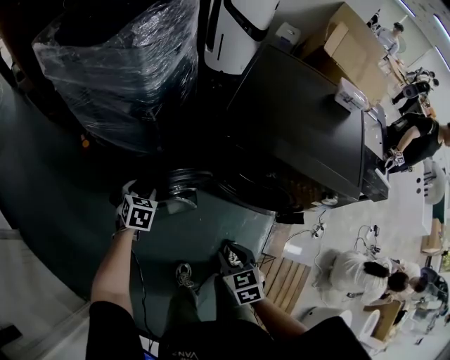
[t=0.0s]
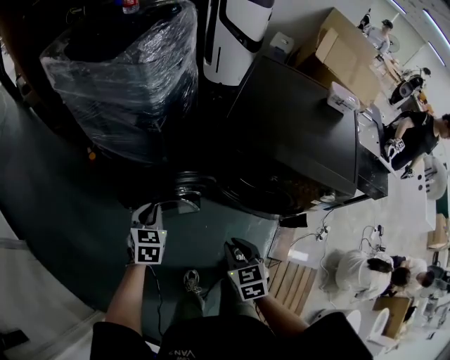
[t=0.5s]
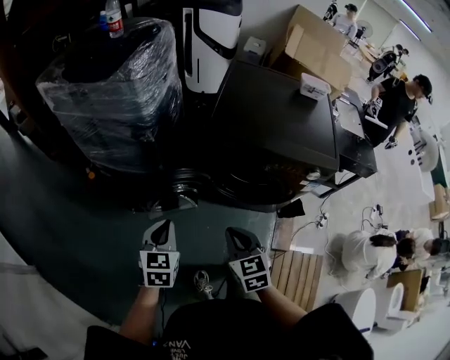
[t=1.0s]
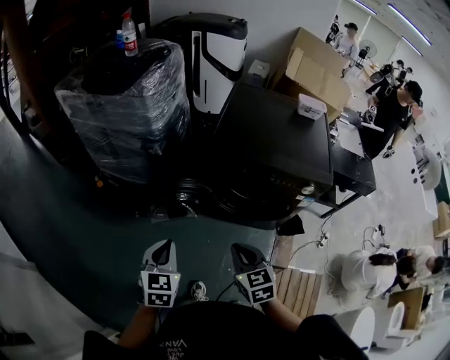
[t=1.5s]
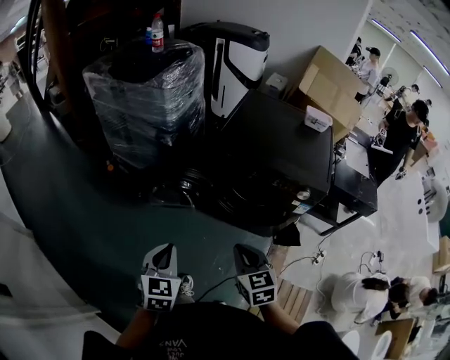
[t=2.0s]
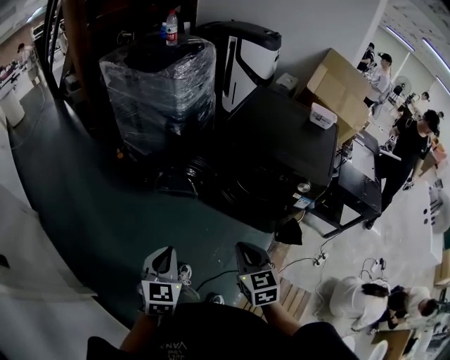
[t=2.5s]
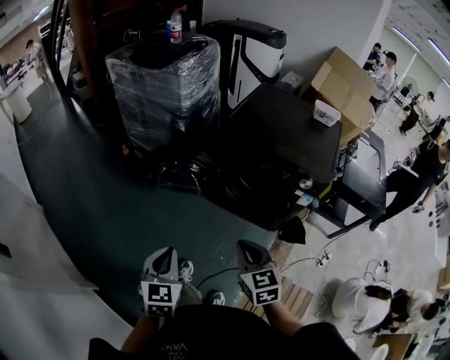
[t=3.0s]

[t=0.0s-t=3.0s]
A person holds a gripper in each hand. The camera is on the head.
t=0.0s to t=1.5s: The right gripper moves upward and backward, some 15 cm, and closes; the left gripper is displaced backward and upward by approximately 30 cm, swivels some 20 degrees, and closes up.
t=1.5s to t=3.0s: The right gripper is displaced backward and to the right by approximately 15 cm. The left gripper is displaced backward by approximately 20 cm.

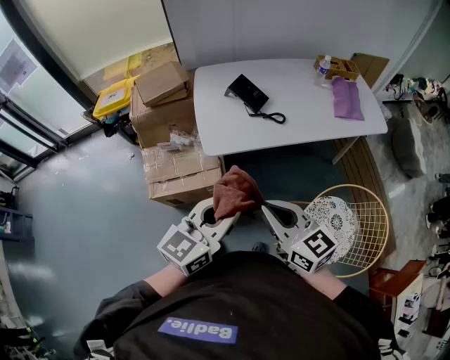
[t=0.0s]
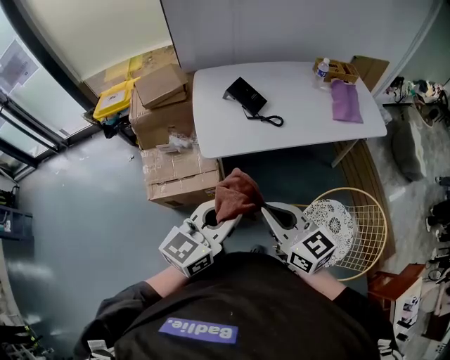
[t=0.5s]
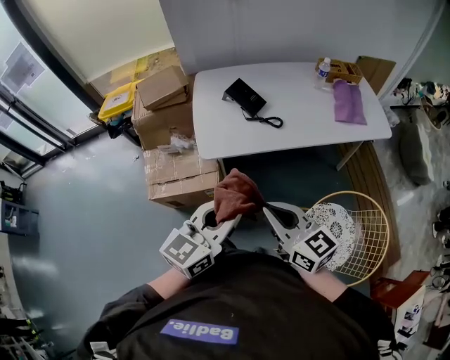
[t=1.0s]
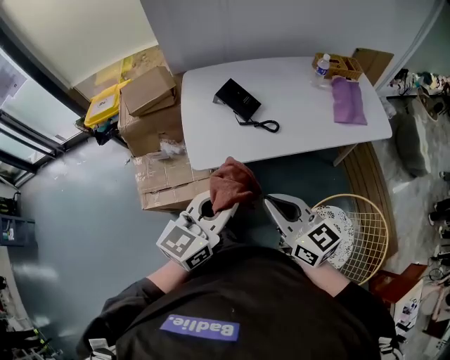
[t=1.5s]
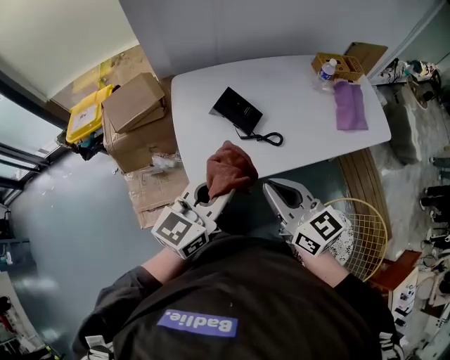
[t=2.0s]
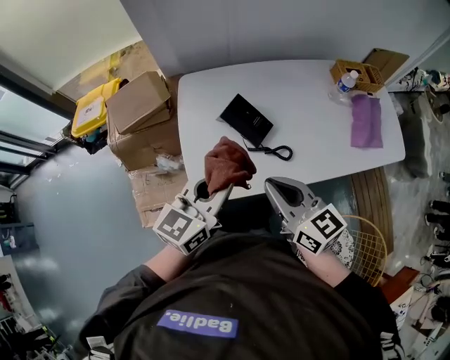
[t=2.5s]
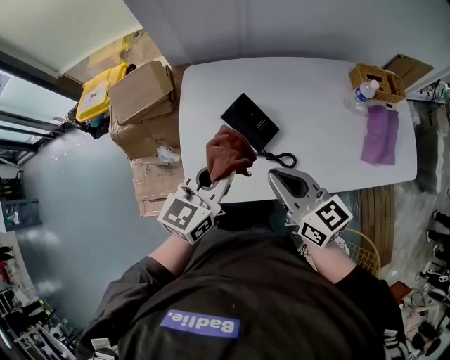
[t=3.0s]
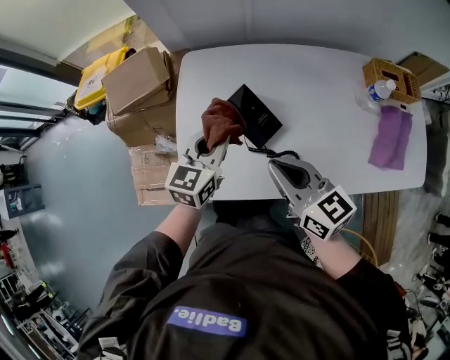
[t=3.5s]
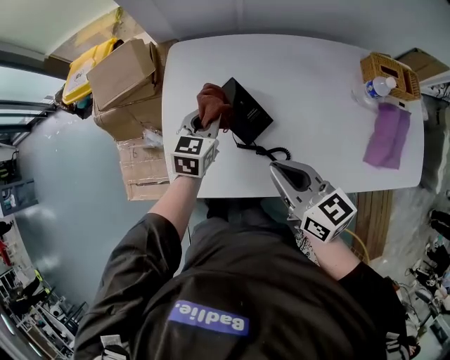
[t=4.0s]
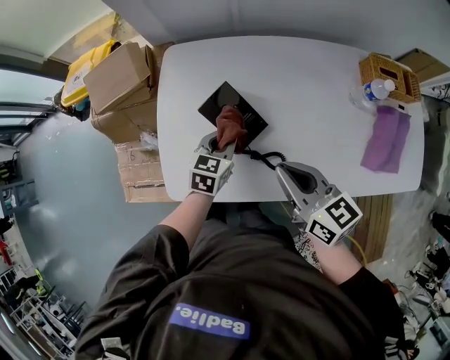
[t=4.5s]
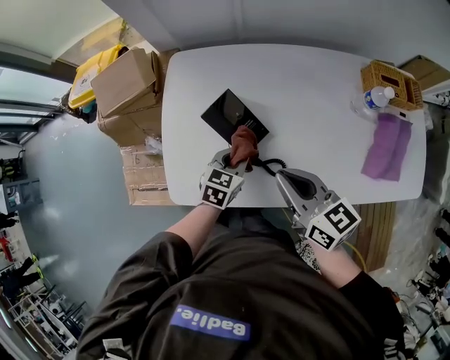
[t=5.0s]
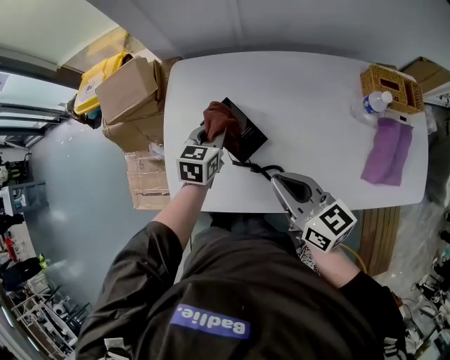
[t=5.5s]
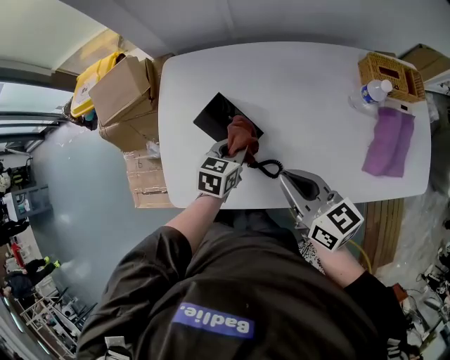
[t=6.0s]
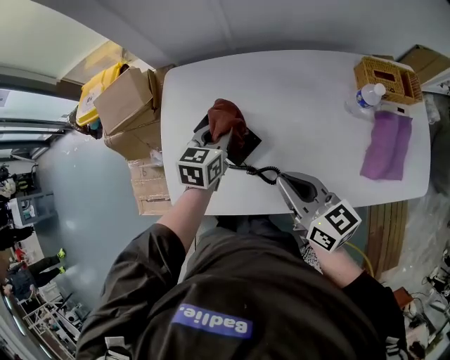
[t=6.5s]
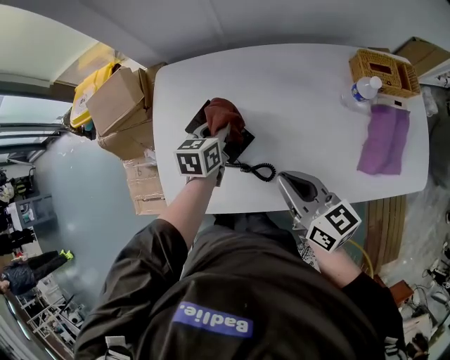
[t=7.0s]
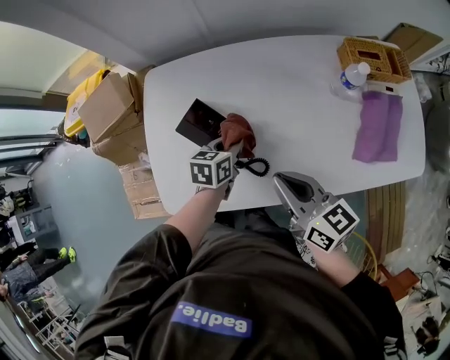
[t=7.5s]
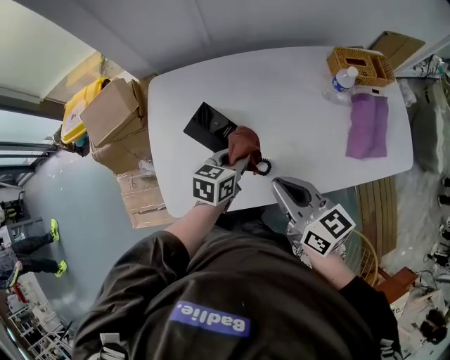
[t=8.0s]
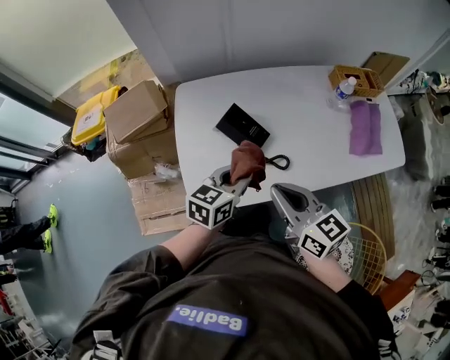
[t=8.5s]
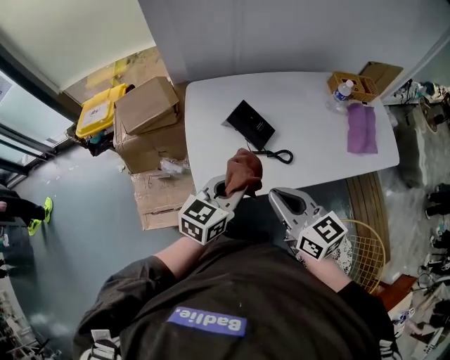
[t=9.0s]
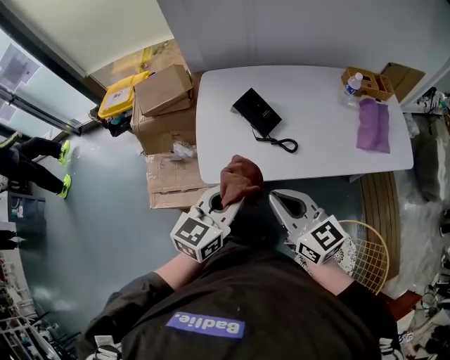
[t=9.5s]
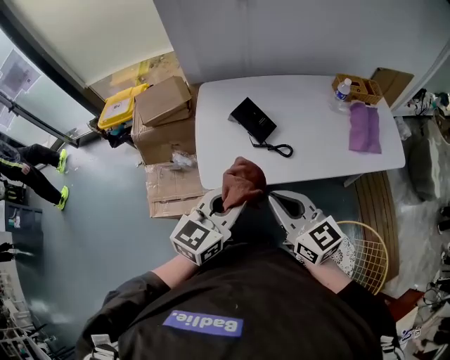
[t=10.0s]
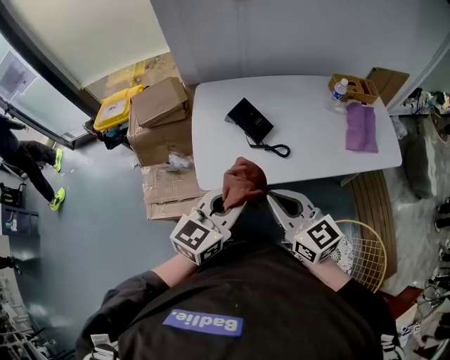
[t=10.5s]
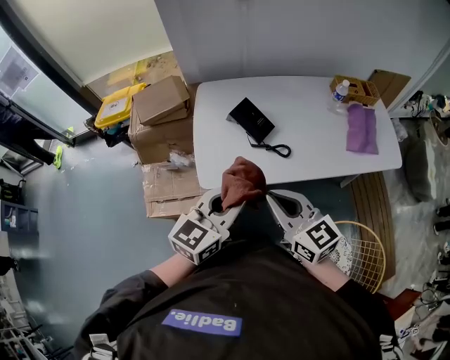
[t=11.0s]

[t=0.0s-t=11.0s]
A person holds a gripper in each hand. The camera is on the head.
t=0.0s to t=2.0s: Both grippers travel together forward, about 25 cm.
t=2.0s to t=3.5s: The grippers both shift forward and downward by roughly 25 cm. The left gripper rotates some 30 degrees.
t=3.5s to t=5.5s: The left gripper shifts approximately 10 cm downward and forward; the right gripper shifts approximately 5 cm to the right.
t=5.5s to t=7.5s: The left gripper shifts about 15 cm to the right and backward. Meanwhile the right gripper goes roughly 5 cm to the right.
t=7.5s to t=9.0s: The right gripper moves backward, to the left and upward, roughly 25 cm. Meanwhile the left gripper heads backward, upward and to the left, covering about 35 cm, and changes its angle by roughly 30 degrees.
t=9.0s to t=11.0s: The right gripper is displaced backward by roughly 10 cm. The left gripper heads backward and upward, covering roughly 15 cm.

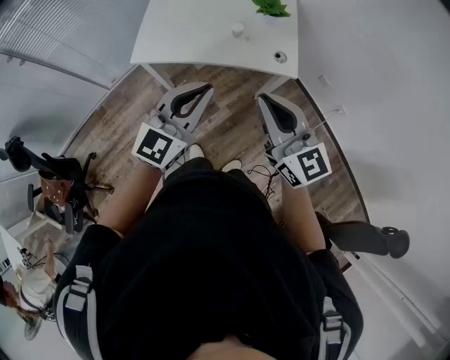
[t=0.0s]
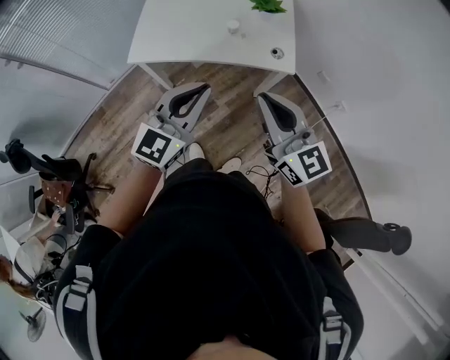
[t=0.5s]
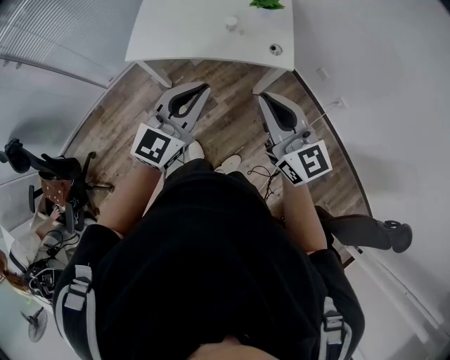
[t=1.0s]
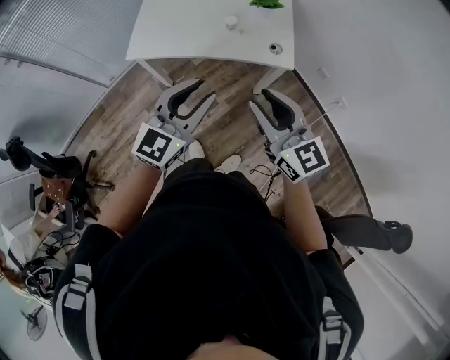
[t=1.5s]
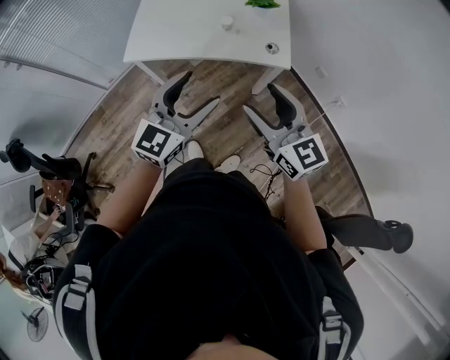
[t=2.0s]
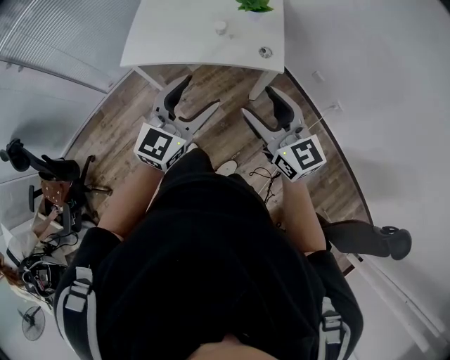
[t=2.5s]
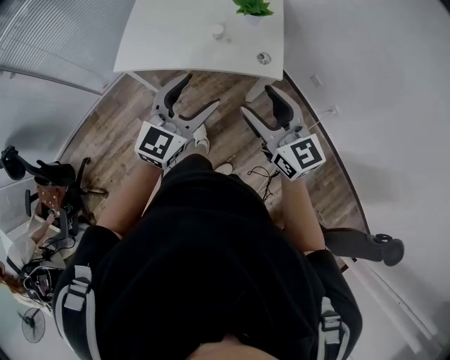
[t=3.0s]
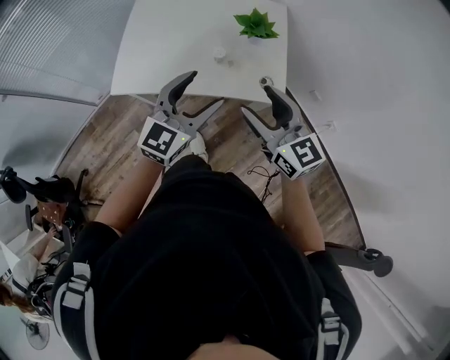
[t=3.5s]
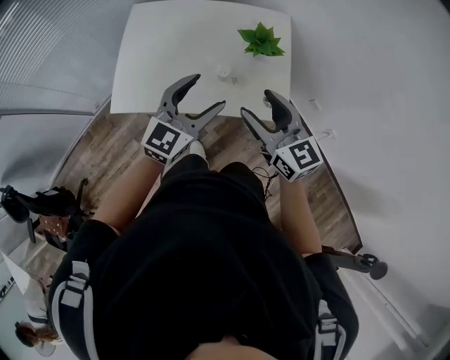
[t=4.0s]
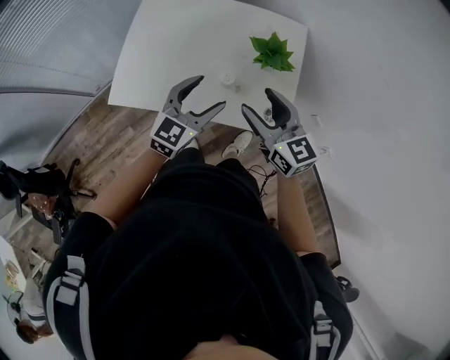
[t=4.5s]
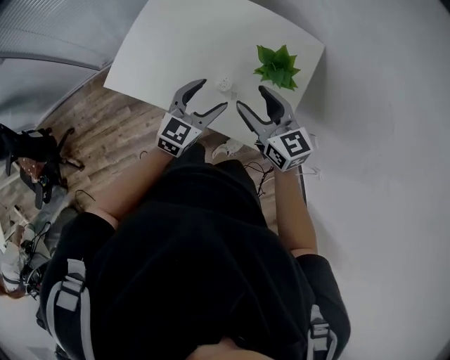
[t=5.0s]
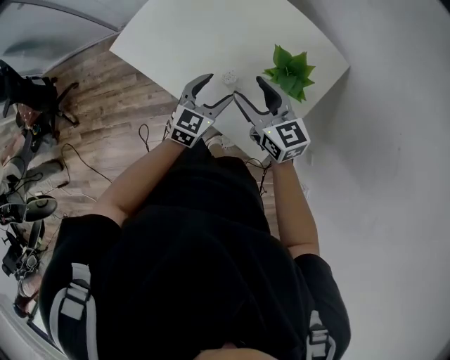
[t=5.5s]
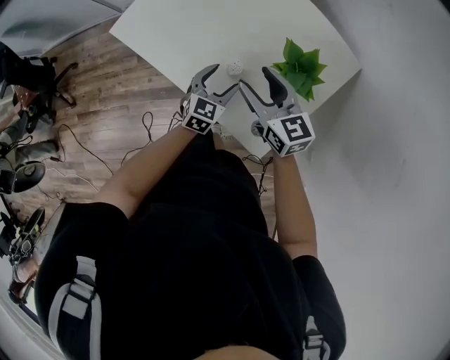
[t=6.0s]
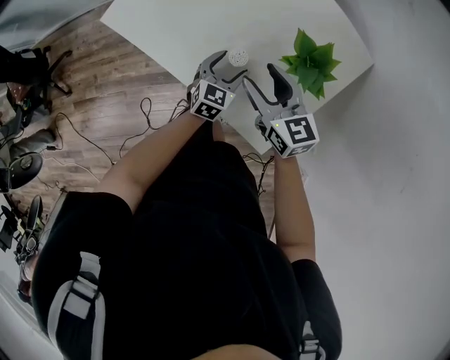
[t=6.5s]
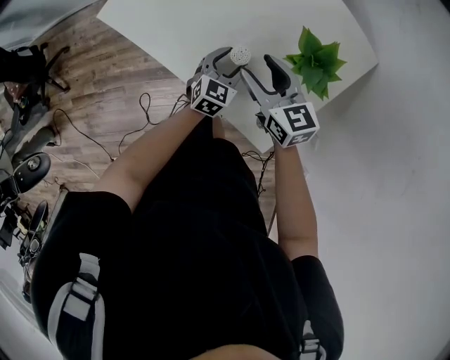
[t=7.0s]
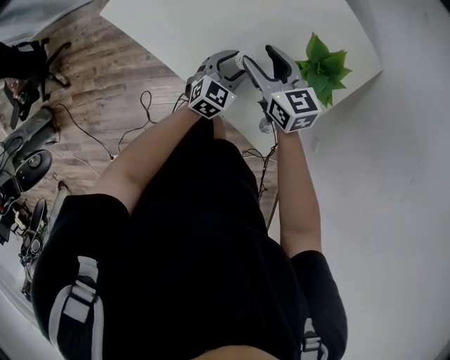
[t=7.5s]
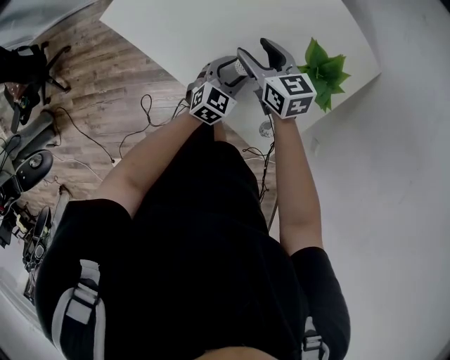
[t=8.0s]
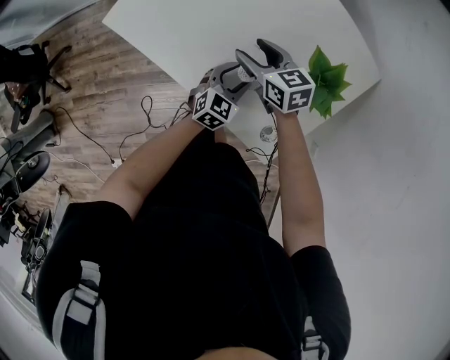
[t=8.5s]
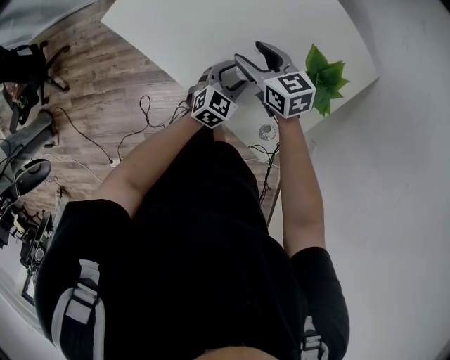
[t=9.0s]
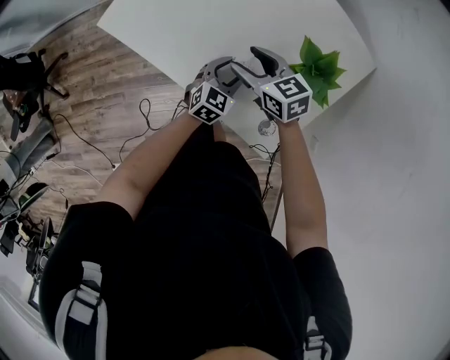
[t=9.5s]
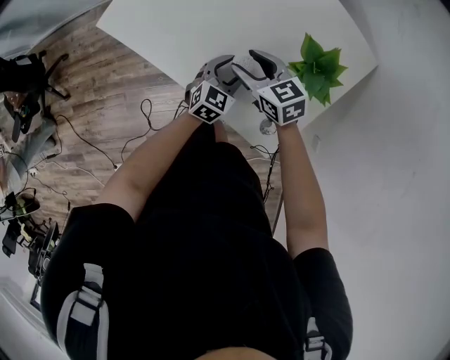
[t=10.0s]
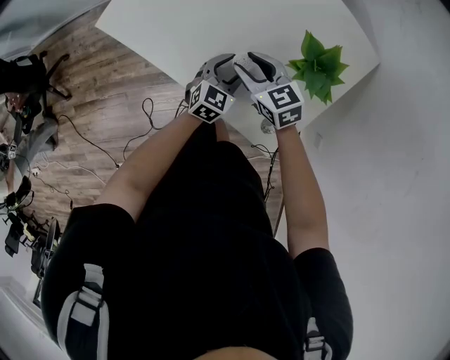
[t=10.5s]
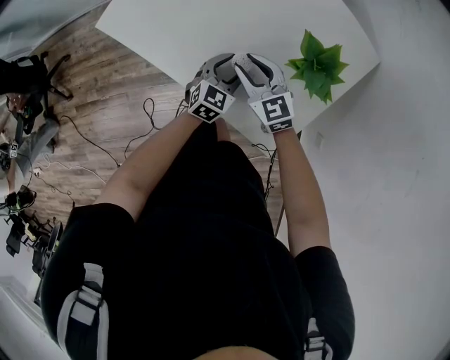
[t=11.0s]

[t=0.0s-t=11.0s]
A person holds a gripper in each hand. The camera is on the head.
t=0.0s to t=2.0s: The left gripper opens its fingers. Meanwhile the right gripper shifts by roughly 5 cm, and opens its fingers.
t=2.0s to t=3.5s: The two grippers go roughly 20 cm forward.
t=3.5s to t=5.5s: The right gripper changes place by roughly 30 cm, and changes its angle by roughly 30 degrees, while the left gripper moves downward, approximately 25 cm, and swivels roughly 40 degrees.
t=5.5s to t=7.5s: The right gripper heads downward and forward, covering some 15 cm; the left gripper heads downward, covering about 15 cm.
t=7.5s to t=9.0s: The right gripper changes place by some 5 cm.
t=9.0s to t=11.0s: The right gripper travels backward by approximately 5 cm, changes its angle by some 20 degrees, and closes up.

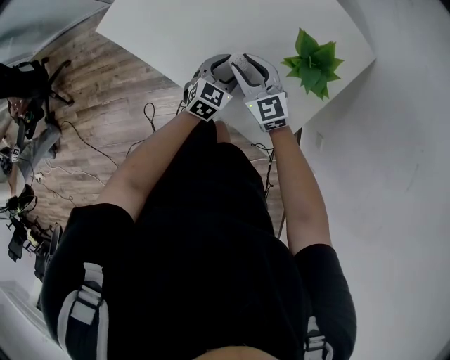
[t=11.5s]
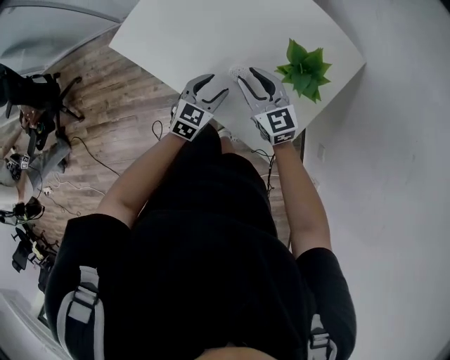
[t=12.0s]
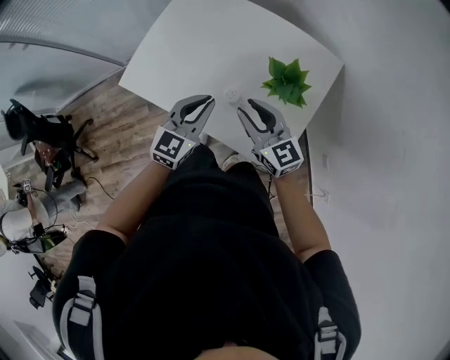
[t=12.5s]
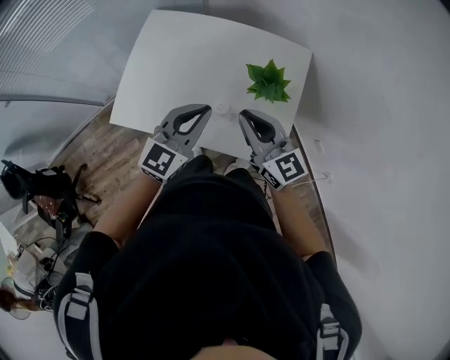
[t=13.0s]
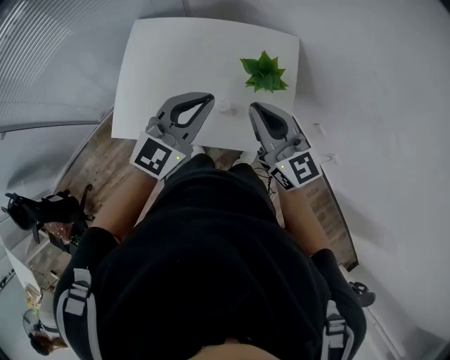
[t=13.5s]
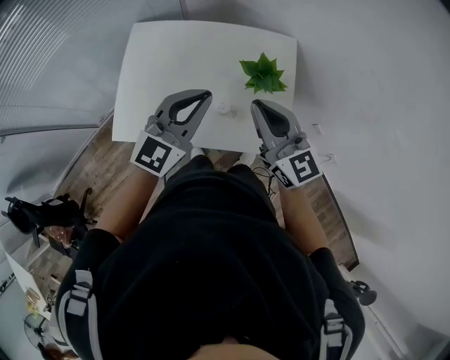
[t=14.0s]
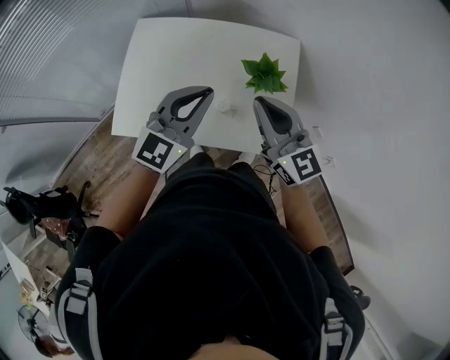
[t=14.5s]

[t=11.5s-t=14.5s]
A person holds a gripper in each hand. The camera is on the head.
t=11.5s to t=13.0s: The two grippers go about 30 cm upward. The left gripper changes its angle by some 40 degrees, and closes its fingers. The right gripper changes its angle by some 30 degrees, and closes its fingers.
t=13.0s to t=14.5s: The grippers both shift upward by some 5 cm.
